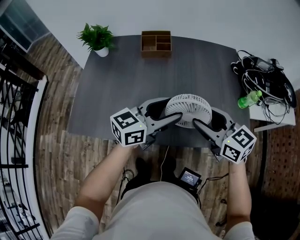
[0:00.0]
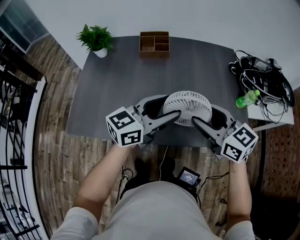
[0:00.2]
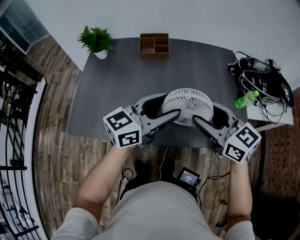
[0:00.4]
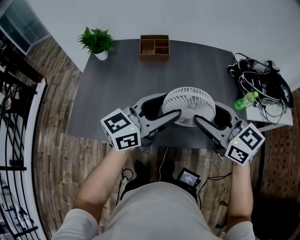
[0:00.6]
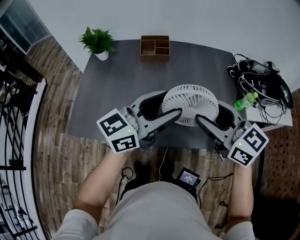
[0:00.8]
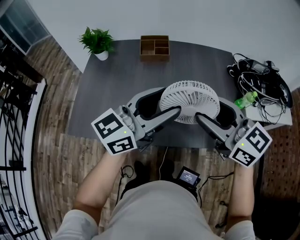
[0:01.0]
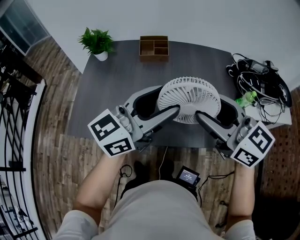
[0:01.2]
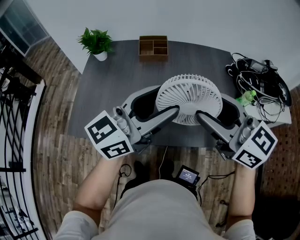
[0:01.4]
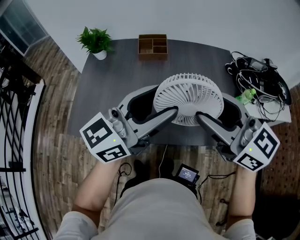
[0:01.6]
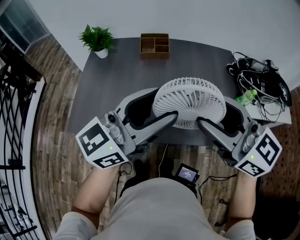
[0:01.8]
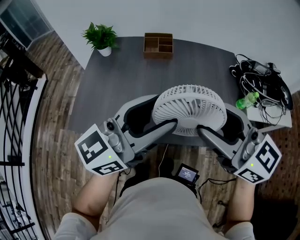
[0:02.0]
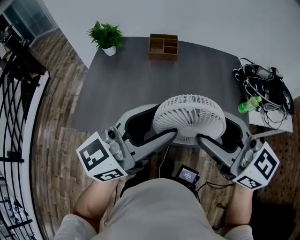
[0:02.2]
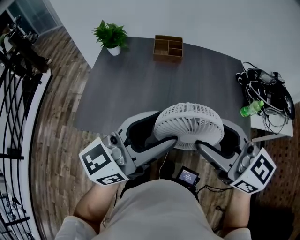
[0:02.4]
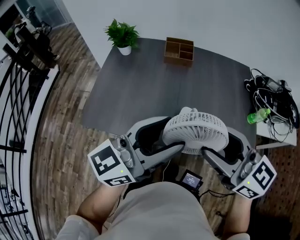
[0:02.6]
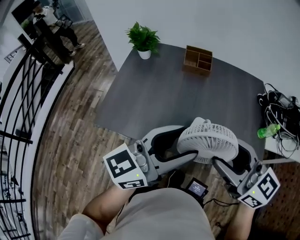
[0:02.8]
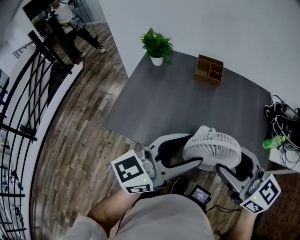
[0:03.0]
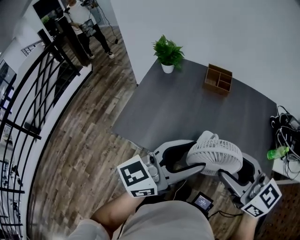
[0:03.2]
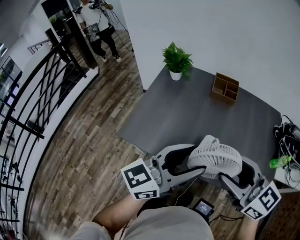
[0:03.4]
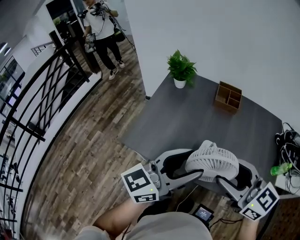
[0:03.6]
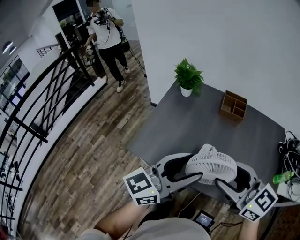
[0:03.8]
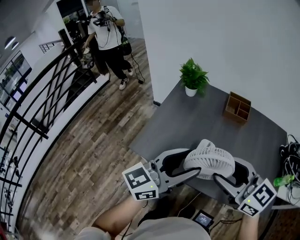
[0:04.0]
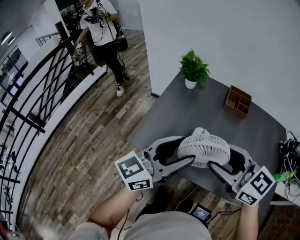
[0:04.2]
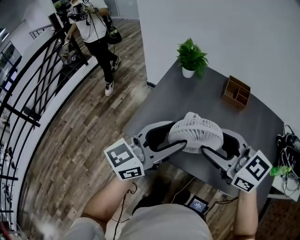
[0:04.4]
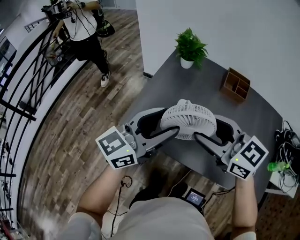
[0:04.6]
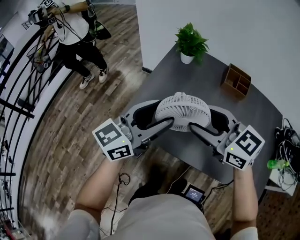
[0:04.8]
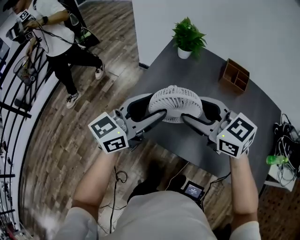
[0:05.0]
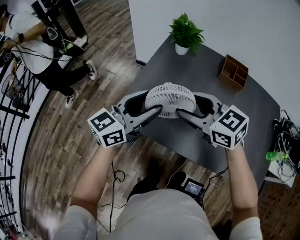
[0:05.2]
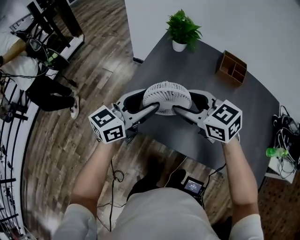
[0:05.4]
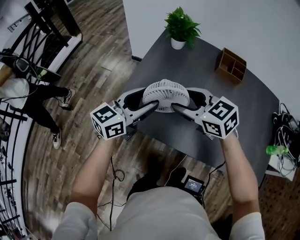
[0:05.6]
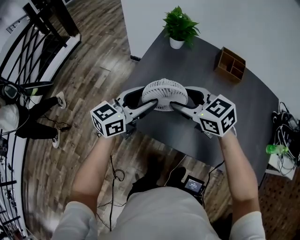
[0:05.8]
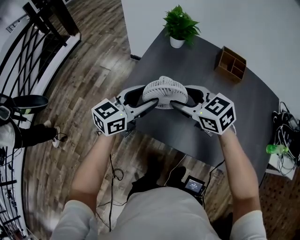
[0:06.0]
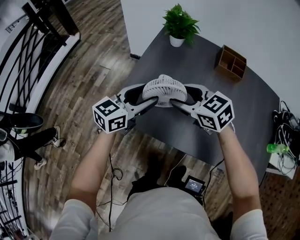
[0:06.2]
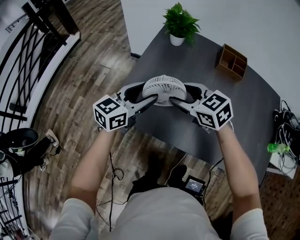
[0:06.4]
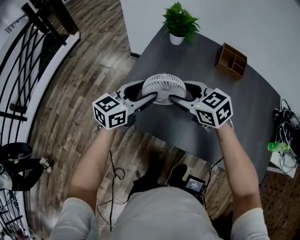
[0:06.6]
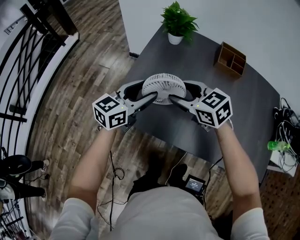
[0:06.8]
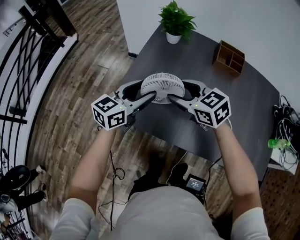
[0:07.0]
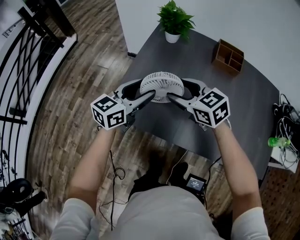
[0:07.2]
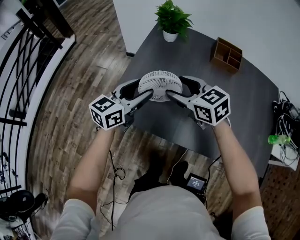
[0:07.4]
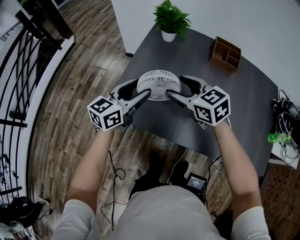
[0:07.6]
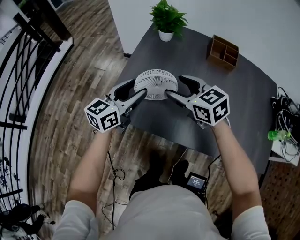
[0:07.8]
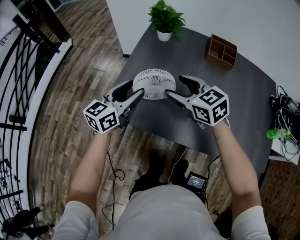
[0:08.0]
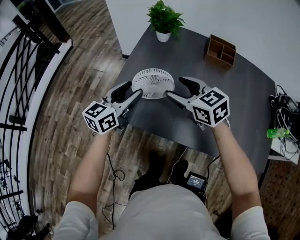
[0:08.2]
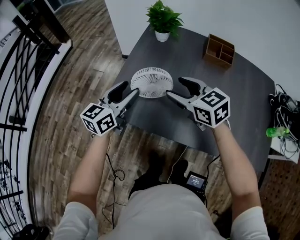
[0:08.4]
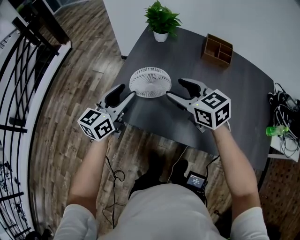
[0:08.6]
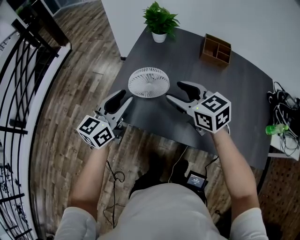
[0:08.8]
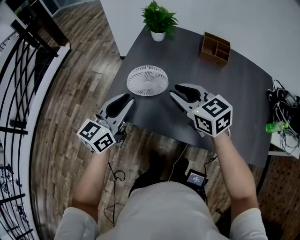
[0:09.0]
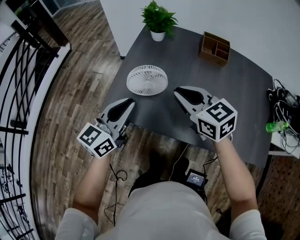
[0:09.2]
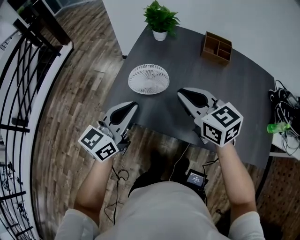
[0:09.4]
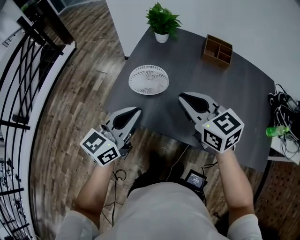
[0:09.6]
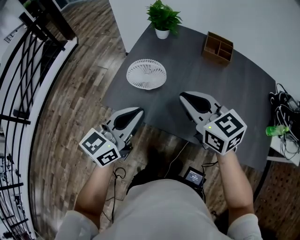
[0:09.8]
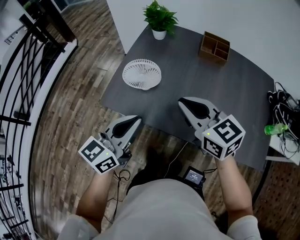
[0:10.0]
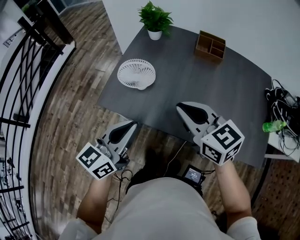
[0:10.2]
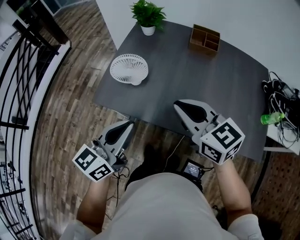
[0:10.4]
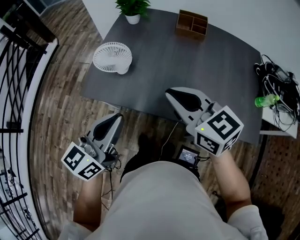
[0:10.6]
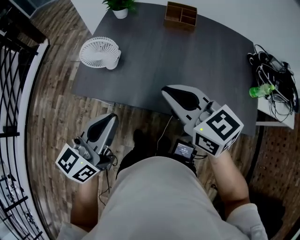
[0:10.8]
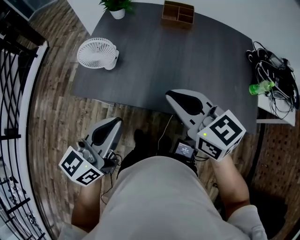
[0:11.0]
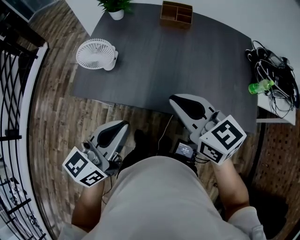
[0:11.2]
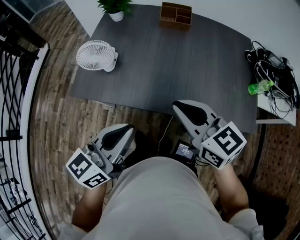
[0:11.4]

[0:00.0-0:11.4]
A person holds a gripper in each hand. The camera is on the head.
0:00.0 to 0:01.4: Both grippers travel together upward, some 15 cm.
0:01.4 to 0:02.8: The grippers both shift to the left and backward by roughly 10 cm.
0:02.8 to 0:04.2: The left gripper heads to the left, covering roughly 20 cm, while the right gripper travels to the left and forward by approximately 20 cm.
0:04.2 to 0:05.6: The right gripper is displaced forward, downward and to the left by approximately 20 cm. Meanwhile the left gripper travels downward, forward and to the left by approximately 20 cm.
0:05.6 to 0:07.2: The grippers stay close to where they were, moving slightly.
0:07.2 to 0:08.6: The right gripper changes place by approximately 5 cm.
0:08.6 to 0:10.0: The right gripper shifts about 15 cm backward and upward, and closes; the left gripper is displaced backward and to the right by approximately 20 cm, and closes.
0:10.0 to 0:11.4: The grippers both shift to the right and backward by some 15 cm.

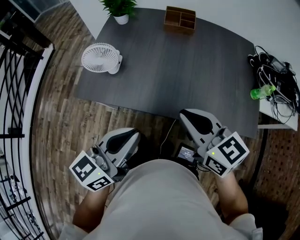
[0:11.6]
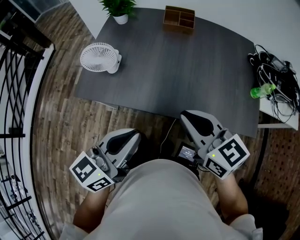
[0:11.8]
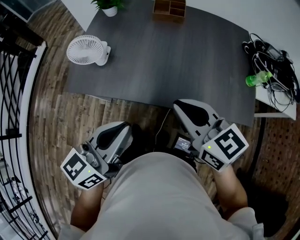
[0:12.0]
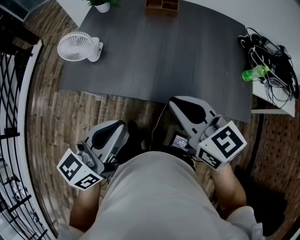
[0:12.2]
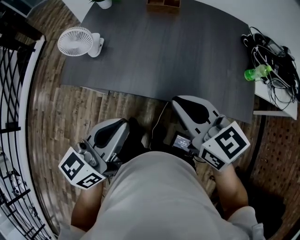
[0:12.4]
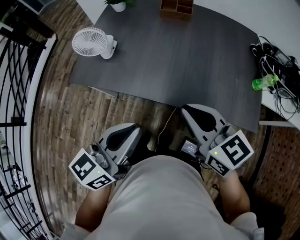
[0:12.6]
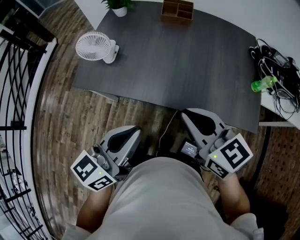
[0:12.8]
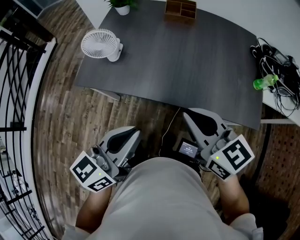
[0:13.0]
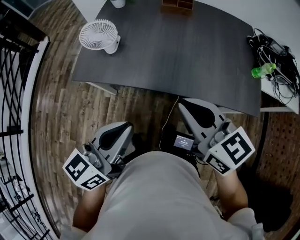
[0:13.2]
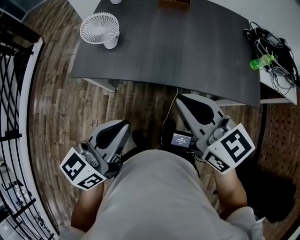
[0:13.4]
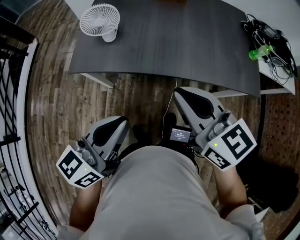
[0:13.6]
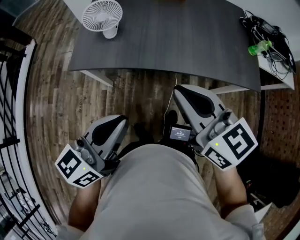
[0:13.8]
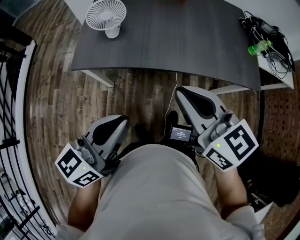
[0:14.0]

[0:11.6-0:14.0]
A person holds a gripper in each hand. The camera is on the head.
0:11.6 to 0:12.8: The left gripper ends up about 5 cm from where it was. The right gripper ends up roughly 5 cm from where it was.
0:12.8 to 0:14.0: Both grippers move to the left and backward, some 15 cm.

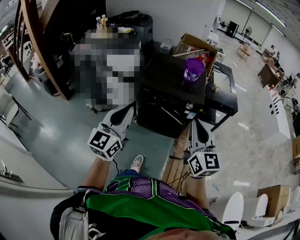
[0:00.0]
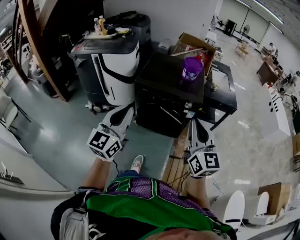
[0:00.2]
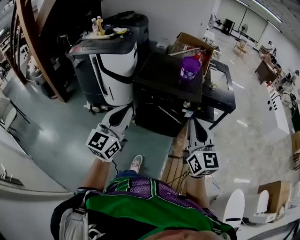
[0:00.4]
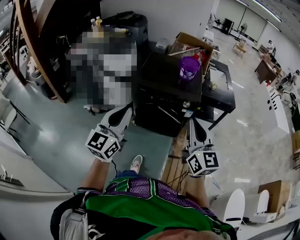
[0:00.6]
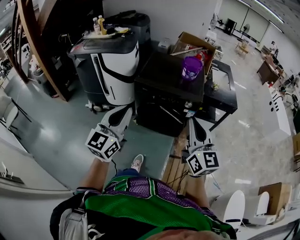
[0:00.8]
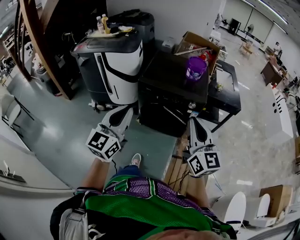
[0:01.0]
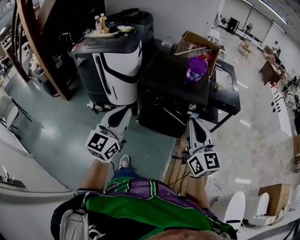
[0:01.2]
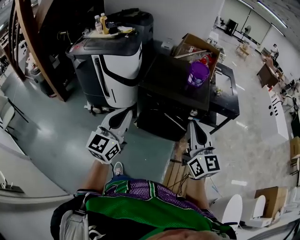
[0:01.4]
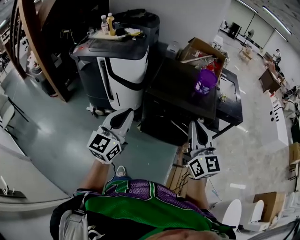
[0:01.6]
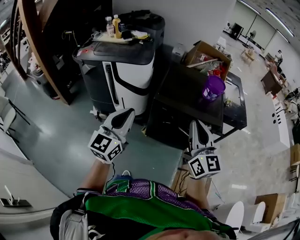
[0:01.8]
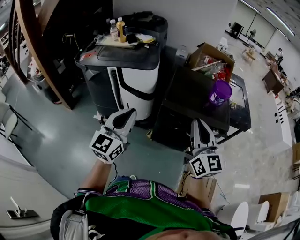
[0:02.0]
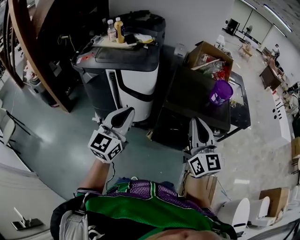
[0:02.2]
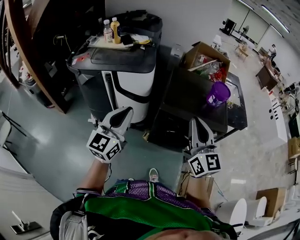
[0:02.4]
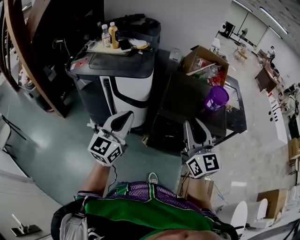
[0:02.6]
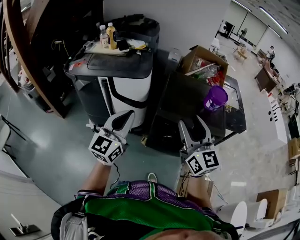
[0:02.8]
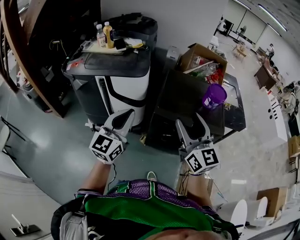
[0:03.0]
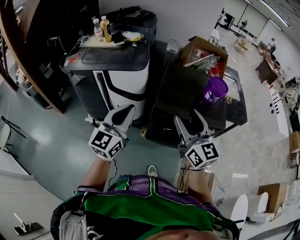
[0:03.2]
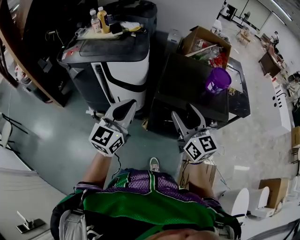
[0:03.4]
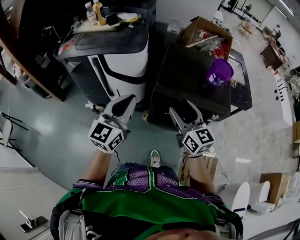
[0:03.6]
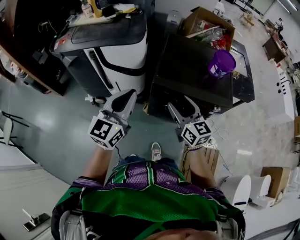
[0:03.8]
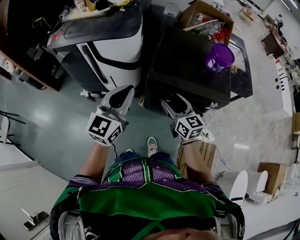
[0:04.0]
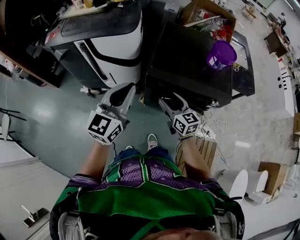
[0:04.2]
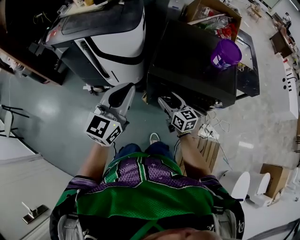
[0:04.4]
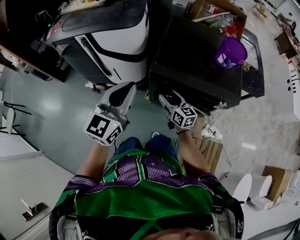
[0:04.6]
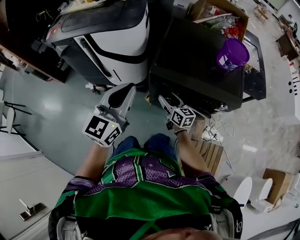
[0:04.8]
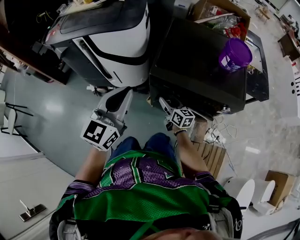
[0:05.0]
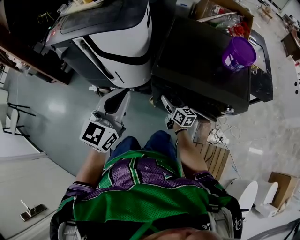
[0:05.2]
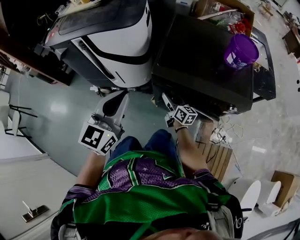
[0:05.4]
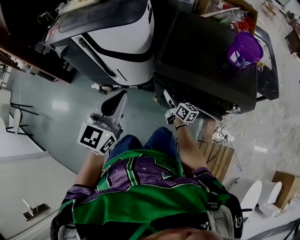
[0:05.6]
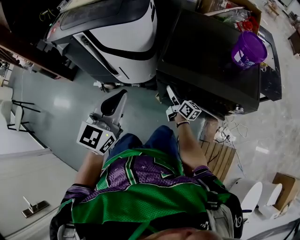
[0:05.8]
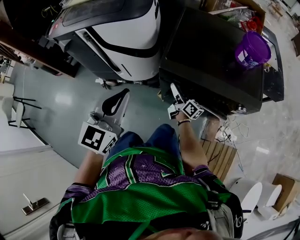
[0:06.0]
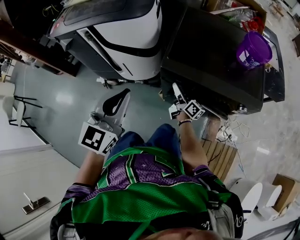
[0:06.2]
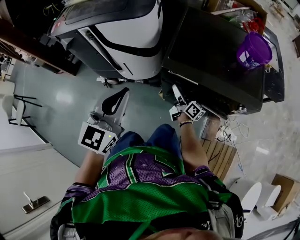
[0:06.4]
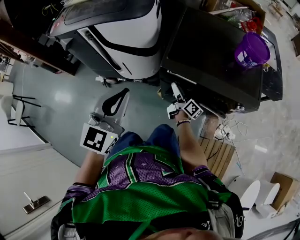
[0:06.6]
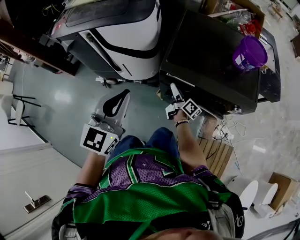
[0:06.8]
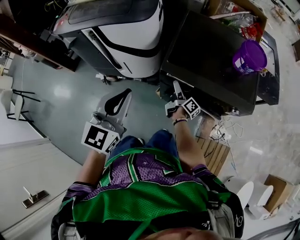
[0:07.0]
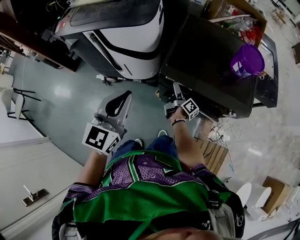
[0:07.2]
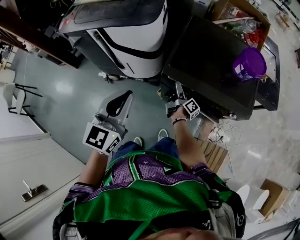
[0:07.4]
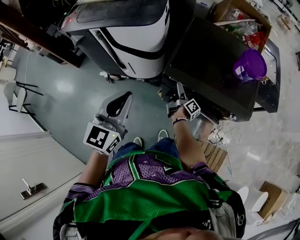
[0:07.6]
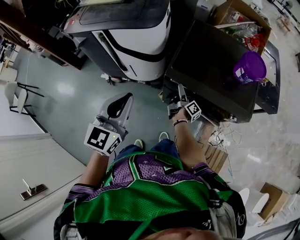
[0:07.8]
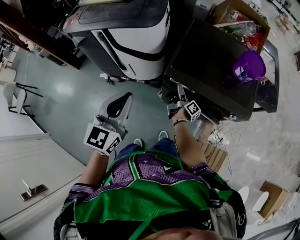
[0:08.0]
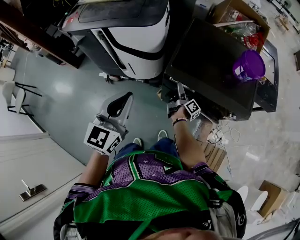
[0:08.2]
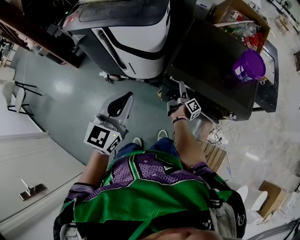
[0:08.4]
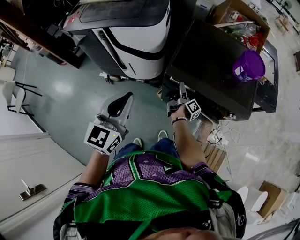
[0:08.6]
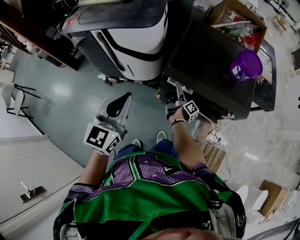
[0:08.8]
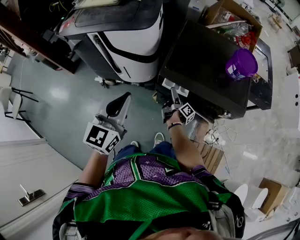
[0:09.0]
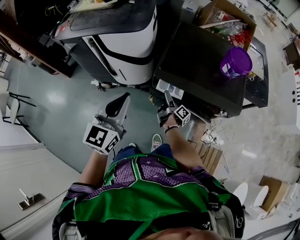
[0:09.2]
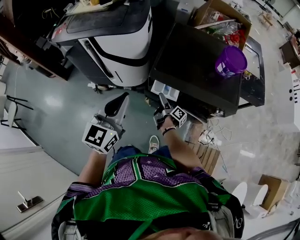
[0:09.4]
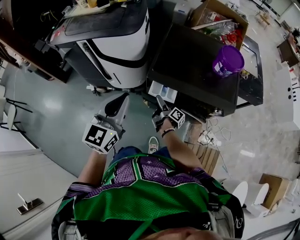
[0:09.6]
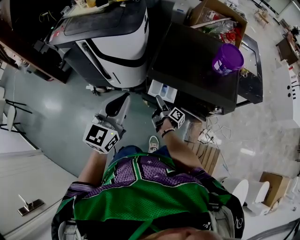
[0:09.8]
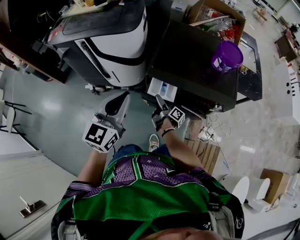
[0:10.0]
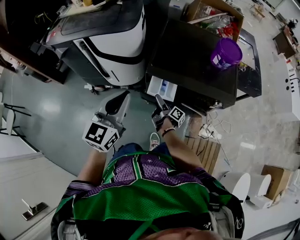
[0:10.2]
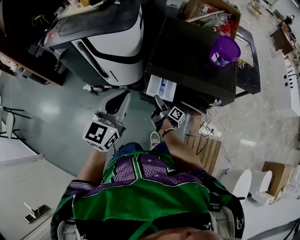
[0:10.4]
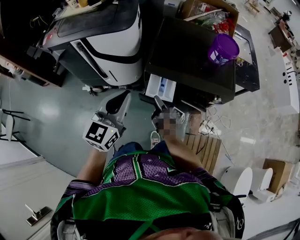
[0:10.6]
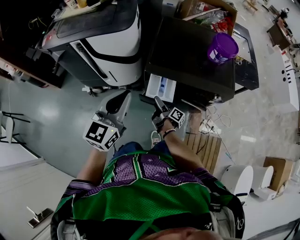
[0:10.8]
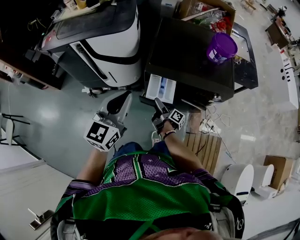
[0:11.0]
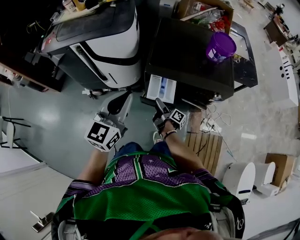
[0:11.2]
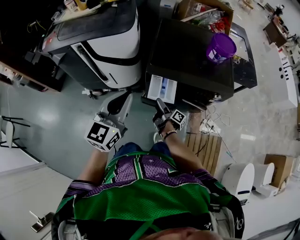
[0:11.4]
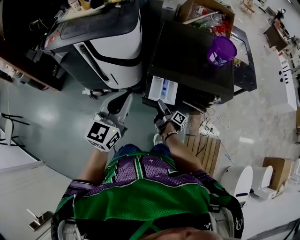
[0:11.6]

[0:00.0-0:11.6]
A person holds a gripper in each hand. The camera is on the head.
0:00.0 to 0:01.4: The right gripper travels to the left and forward by about 10 cm, while the left gripper shifts about 10 cm forward and to the left.
0:01.4 to 0:02.8: The left gripper is displaced forward and to the left by approximately 30 cm; the right gripper is displaced to the left and forward by some 30 cm, and opens.
0:02.8 to 0:04.4: The left gripper heads to the right, downward and forward, covering roughly 15 cm; the right gripper shifts approximately 35 cm downward, and swivels approximately 30 degrees.
0:04.4 to 0:05.8: The right gripper shifts about 20 cm downward and forward, and swivels roughly 30 degrees. The left gripper travels downward by approximately 10 cm.
0:05.8 to 0:07.2: The right gripper swivels roughly 40 degrees, and opens, while the left gripper is displaced upward by some 5 cm.
0:07.2 to 0:08.8: The grippers make only small movements.
0:08.8 to 0:10.2: The right gripper goes about 10 cm backward.
0:10.2 to 0:11.6: The grippers stay close to where they were, moving slightly.
